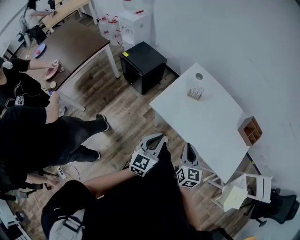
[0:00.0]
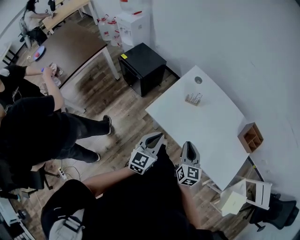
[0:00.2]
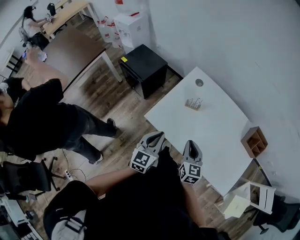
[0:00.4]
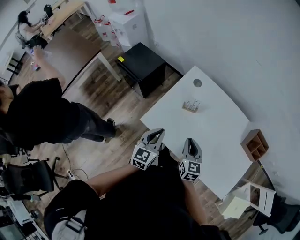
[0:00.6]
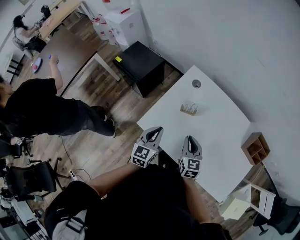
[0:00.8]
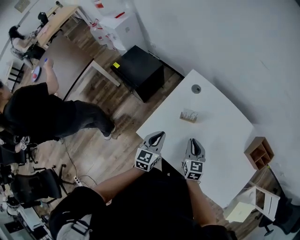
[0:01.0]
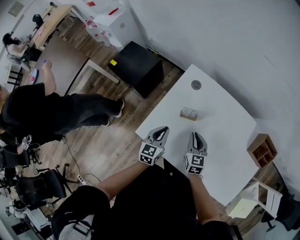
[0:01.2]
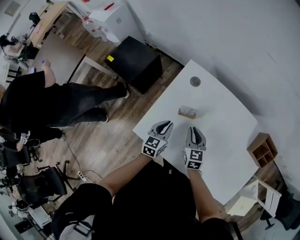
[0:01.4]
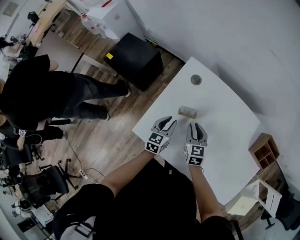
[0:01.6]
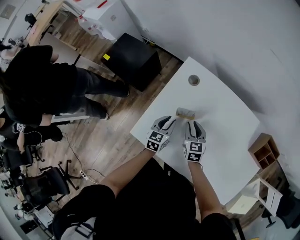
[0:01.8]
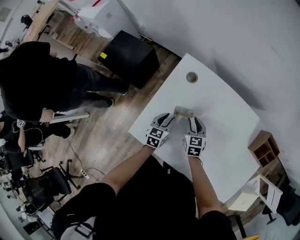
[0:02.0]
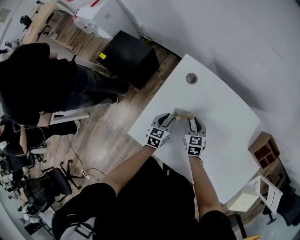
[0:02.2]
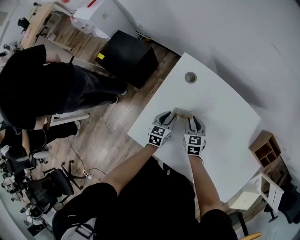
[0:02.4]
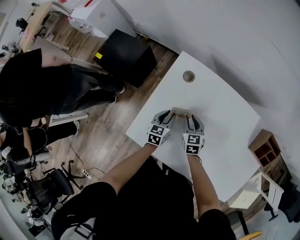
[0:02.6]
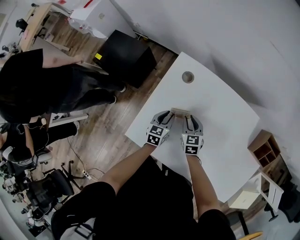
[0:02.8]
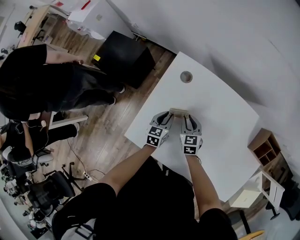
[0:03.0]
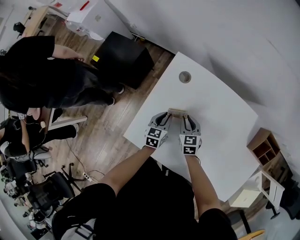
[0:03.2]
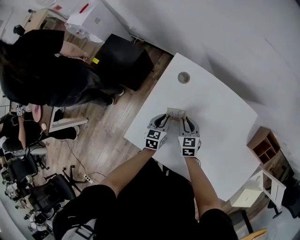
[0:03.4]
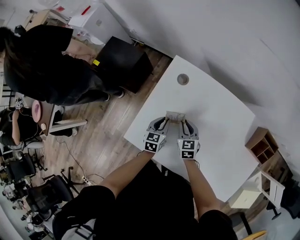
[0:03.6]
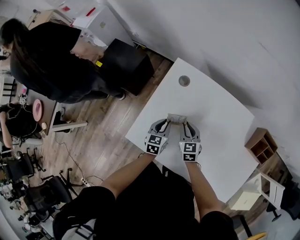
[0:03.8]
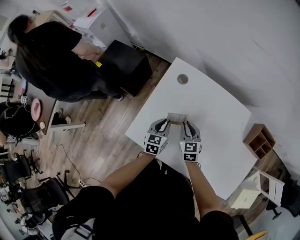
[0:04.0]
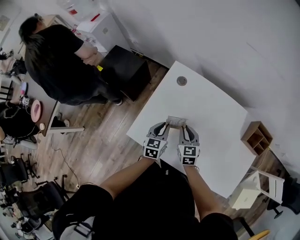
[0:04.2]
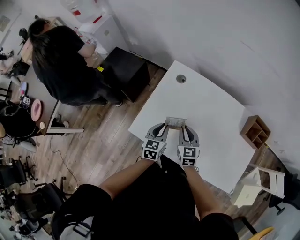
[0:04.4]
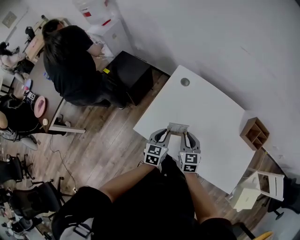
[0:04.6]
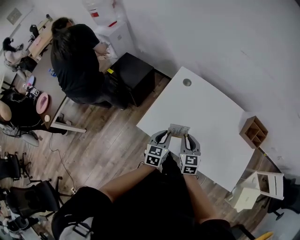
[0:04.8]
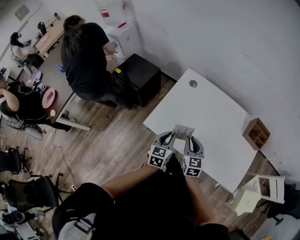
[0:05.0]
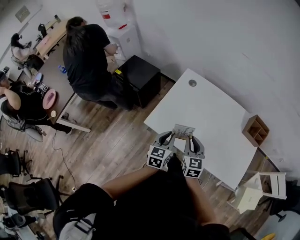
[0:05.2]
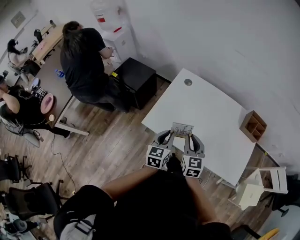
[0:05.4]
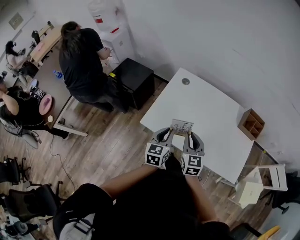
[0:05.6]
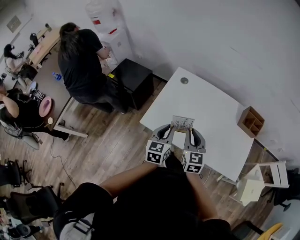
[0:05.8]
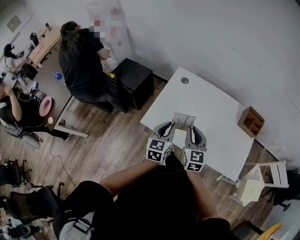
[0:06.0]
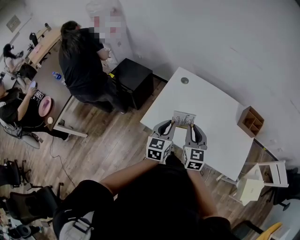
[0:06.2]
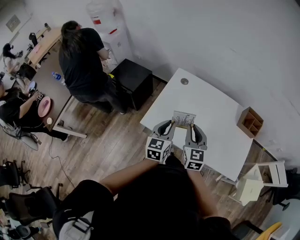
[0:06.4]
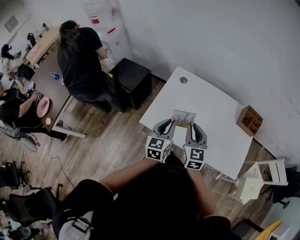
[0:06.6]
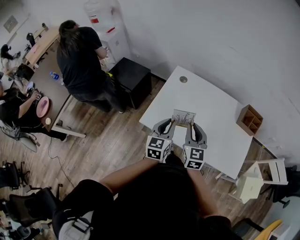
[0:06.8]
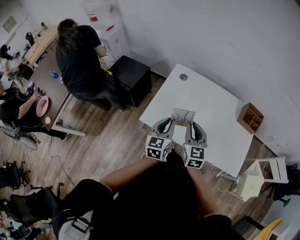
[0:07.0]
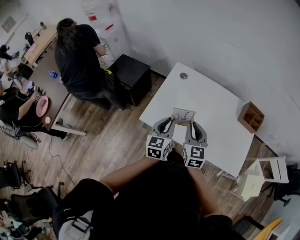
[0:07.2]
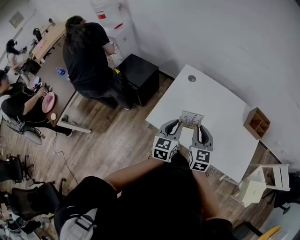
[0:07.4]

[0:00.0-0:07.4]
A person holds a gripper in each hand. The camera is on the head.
0:00.0 to 0:01.4: Both grippers travel together forward and downward, approximately 35 cm. The left gripper swivels approximately 20 degrees.
0:01.4 to 0:03.0: Both grippers move downward and forward, some 10 cm.
0:03.0 to 0:04.4: The grippers both shift upward and backward by approximately 15 cm.
0:04.4 to 0:06.0: Both grippers move upward and backward, about 20 cm.
0:06.0 to 0:07.4: There are only small adjustments of the grippers.

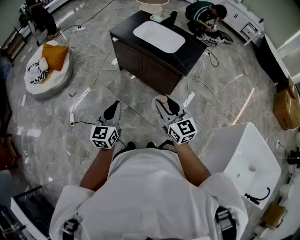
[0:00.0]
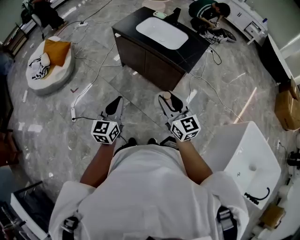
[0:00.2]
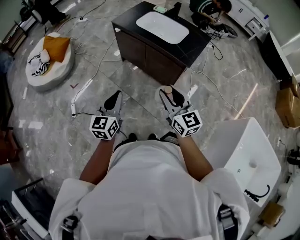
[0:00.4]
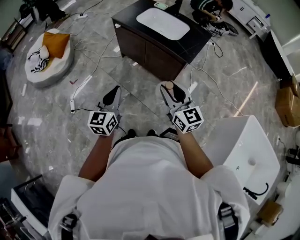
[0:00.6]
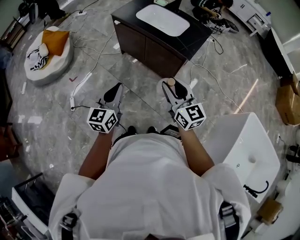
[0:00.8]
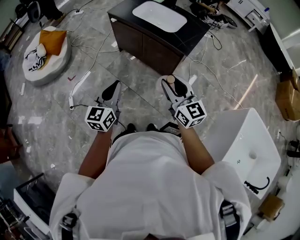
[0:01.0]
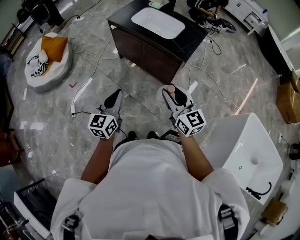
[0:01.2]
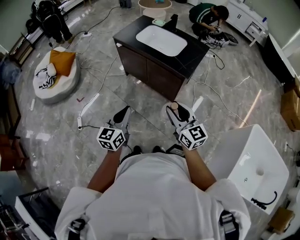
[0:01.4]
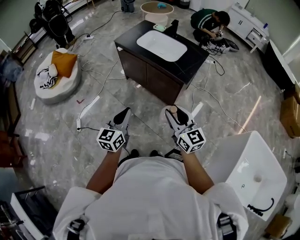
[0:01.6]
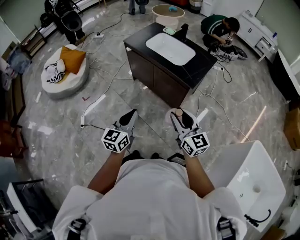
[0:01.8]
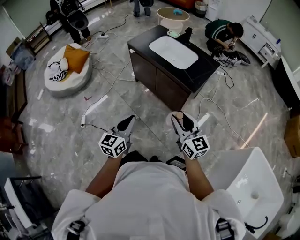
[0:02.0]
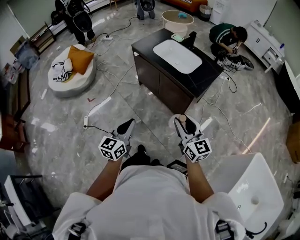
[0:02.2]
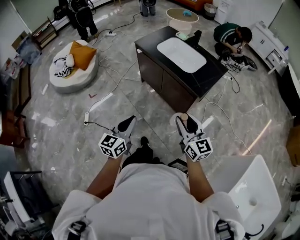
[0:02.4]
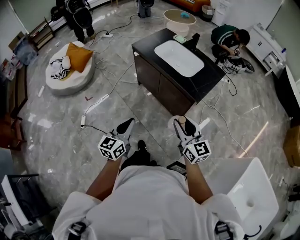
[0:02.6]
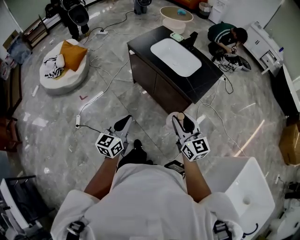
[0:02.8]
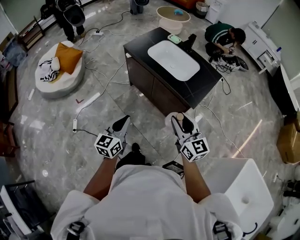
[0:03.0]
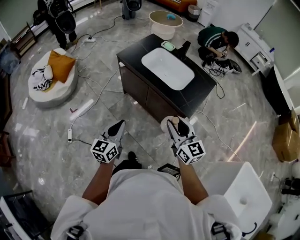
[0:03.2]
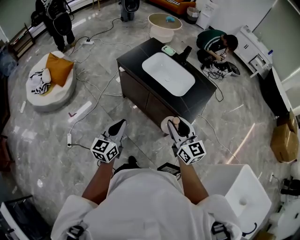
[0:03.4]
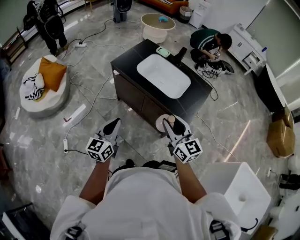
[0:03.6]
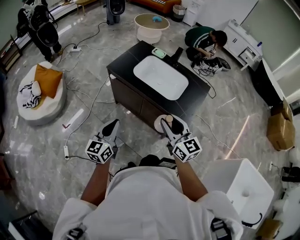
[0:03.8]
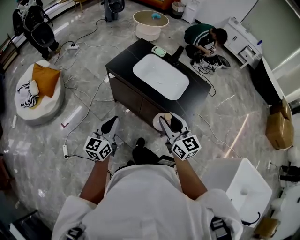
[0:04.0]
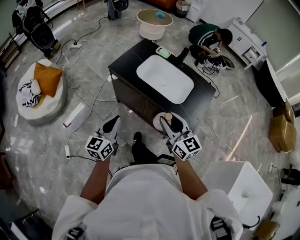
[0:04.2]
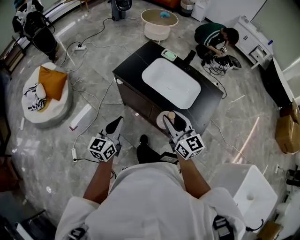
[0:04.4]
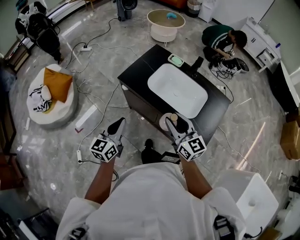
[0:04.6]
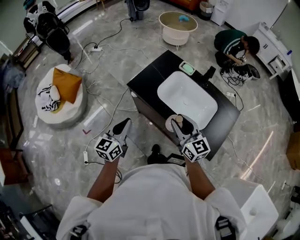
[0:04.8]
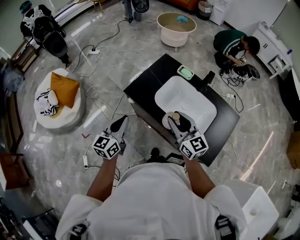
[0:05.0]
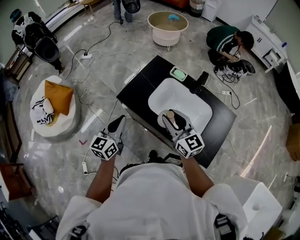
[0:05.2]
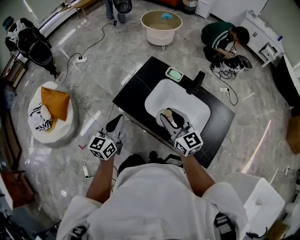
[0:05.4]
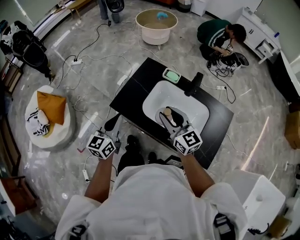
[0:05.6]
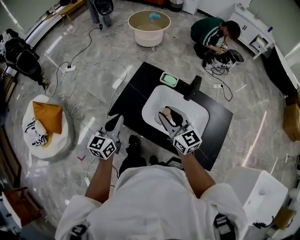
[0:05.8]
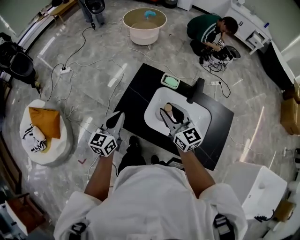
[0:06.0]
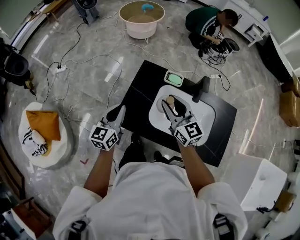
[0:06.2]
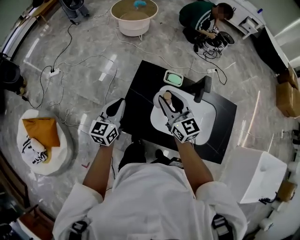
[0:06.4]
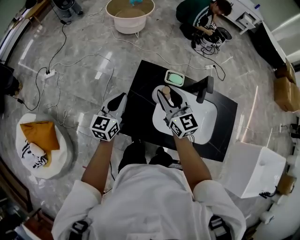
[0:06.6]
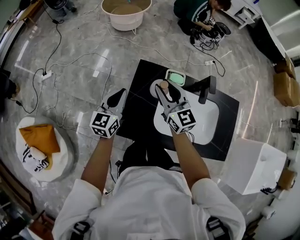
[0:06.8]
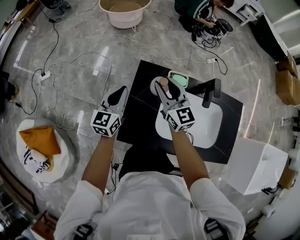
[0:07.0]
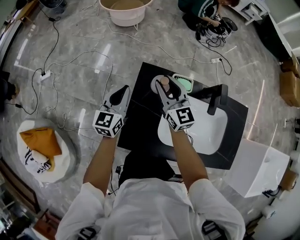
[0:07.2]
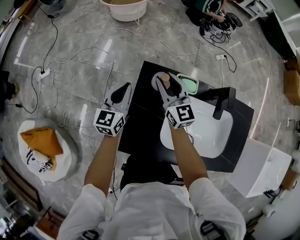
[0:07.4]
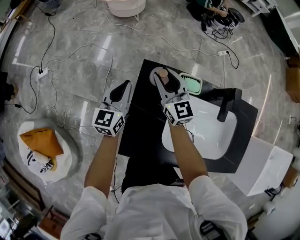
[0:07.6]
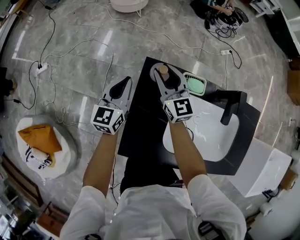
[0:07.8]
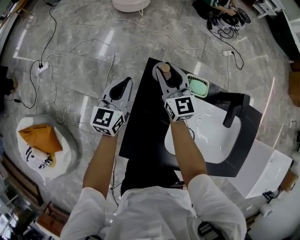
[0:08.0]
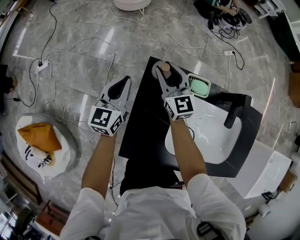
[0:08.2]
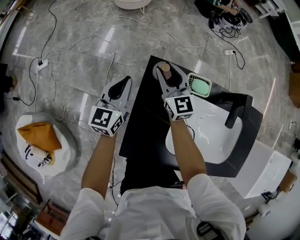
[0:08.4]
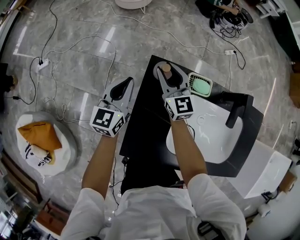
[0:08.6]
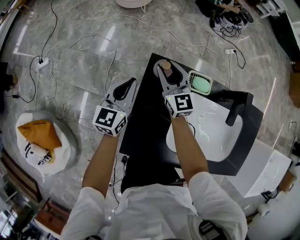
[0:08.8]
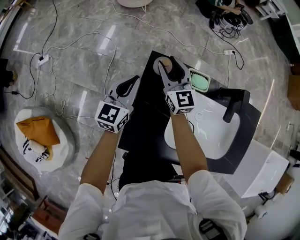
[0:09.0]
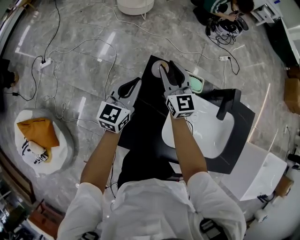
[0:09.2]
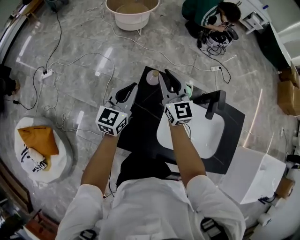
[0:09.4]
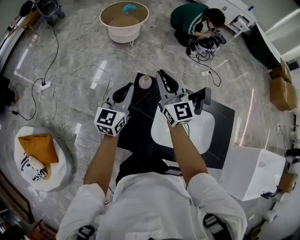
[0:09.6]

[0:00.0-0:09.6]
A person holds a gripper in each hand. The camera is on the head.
0:00.0 to 0:01.6: The two grippers go roughly 5 cm to the right.
0:01.6 to 0:03.2: The two grippers go approximately 20 cm forward.
0:03.2 to 0:04.8: The grippers both shift forward by approximately 35 cm.
0:04.8 to 0:06.4: Both grippers travel together forward, roughly 40 cm. The right gripper turns by roughly 20 degrees.
0:06.4 to 0:08.0: Both grippers move forward and downward, about 30 cm.
0:08.0 to 0:09.6: Both grippers move upward and backward, approximately 25 cm. The right gripper closes.

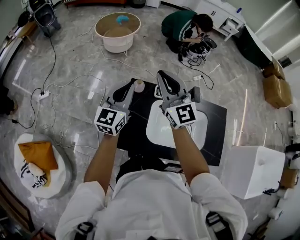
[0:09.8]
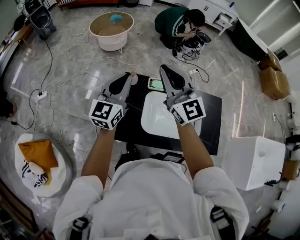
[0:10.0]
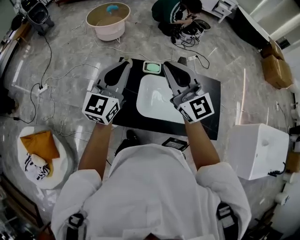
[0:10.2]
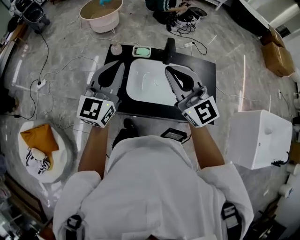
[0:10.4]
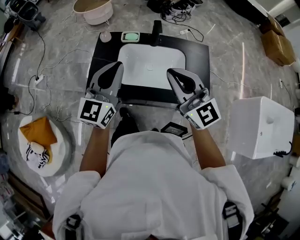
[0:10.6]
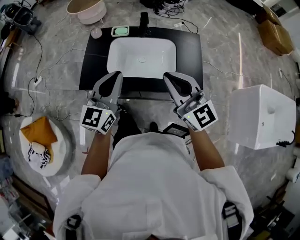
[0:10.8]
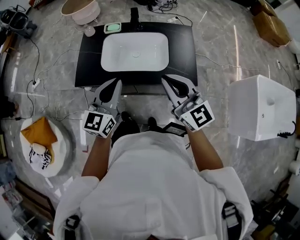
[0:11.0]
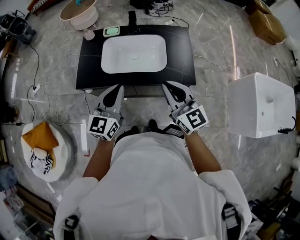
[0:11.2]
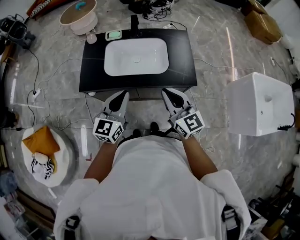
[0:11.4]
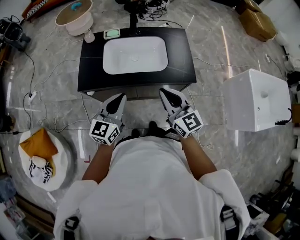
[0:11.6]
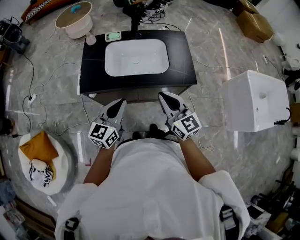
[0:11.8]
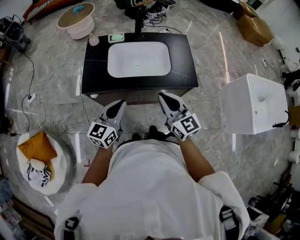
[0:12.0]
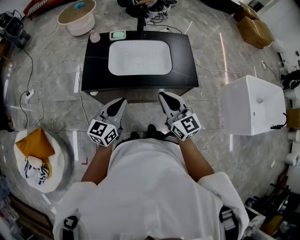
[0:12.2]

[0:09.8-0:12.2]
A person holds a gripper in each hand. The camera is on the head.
0:09.8 to 0:11.0: Both grippers are carried backward and to the right, about 50 cm.
0:11.0 to 0:12.2: The left gripper travels backward, to the left and downward by roughly 10 cm. The right gripper heads to the left, backward and downward, covering about 10 cm.

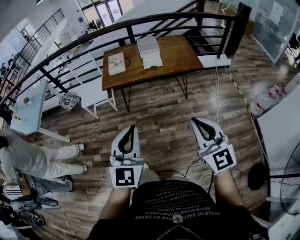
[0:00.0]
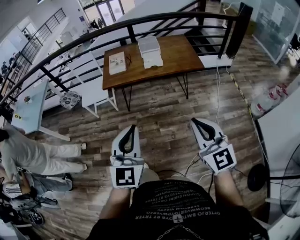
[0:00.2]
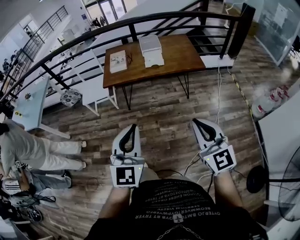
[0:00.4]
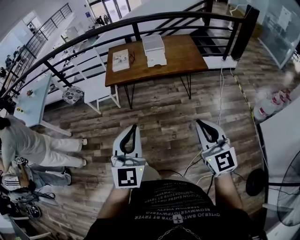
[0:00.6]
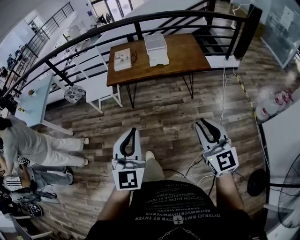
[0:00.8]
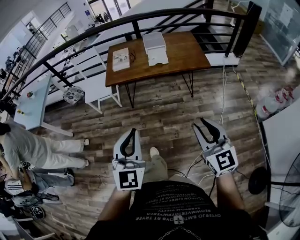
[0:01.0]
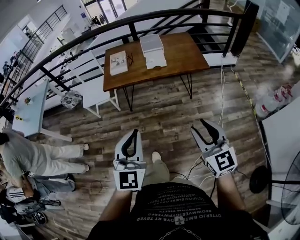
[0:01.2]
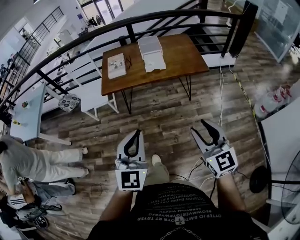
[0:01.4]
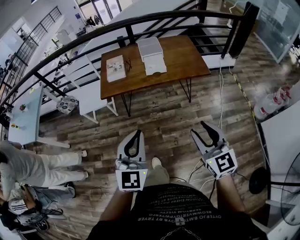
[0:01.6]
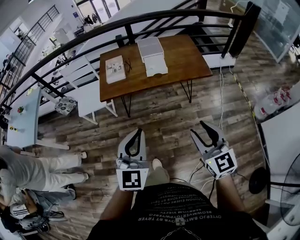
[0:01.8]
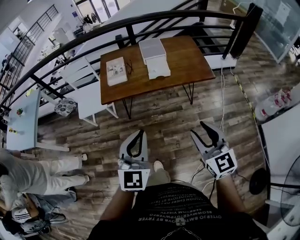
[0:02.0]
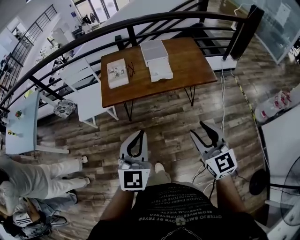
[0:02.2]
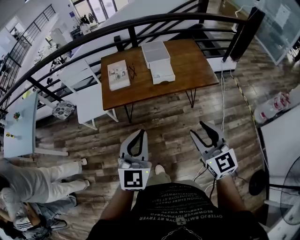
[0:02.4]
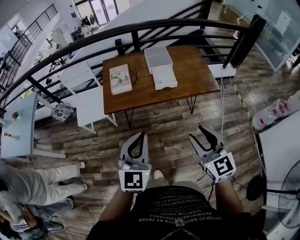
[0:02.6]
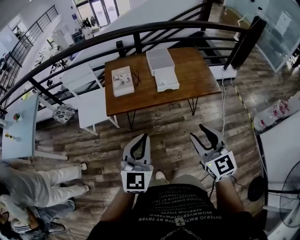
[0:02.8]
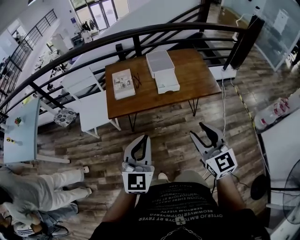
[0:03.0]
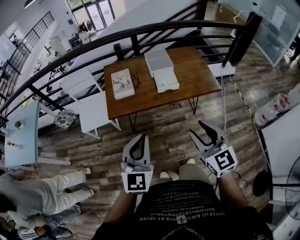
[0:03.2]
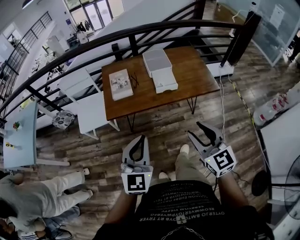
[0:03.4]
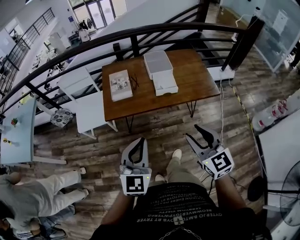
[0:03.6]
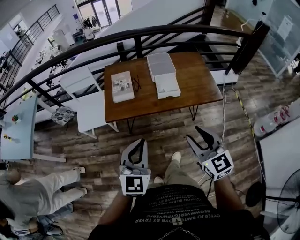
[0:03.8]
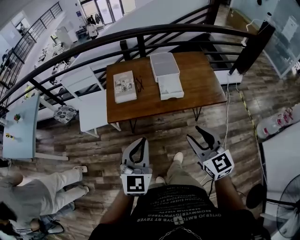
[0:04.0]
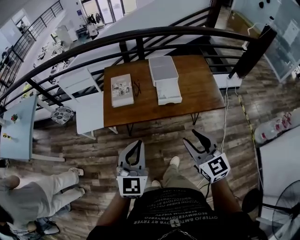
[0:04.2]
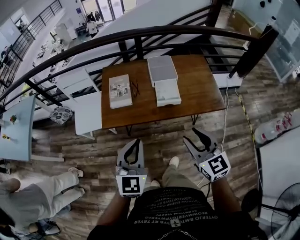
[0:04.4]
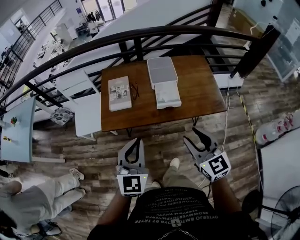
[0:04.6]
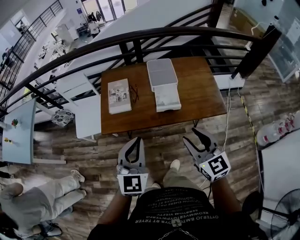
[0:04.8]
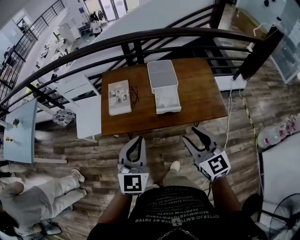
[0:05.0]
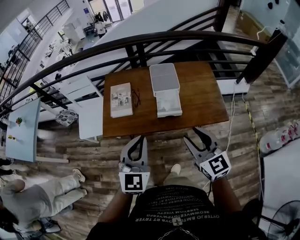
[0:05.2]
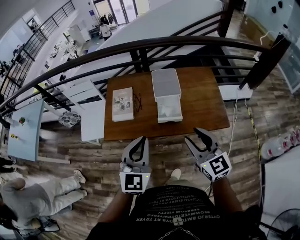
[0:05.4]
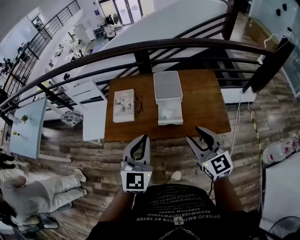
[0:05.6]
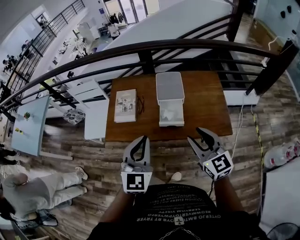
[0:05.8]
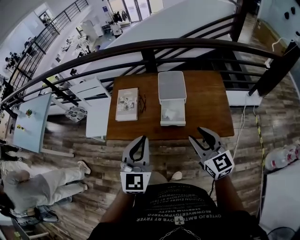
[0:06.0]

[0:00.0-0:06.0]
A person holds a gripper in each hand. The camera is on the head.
0:00.0 to 0:01.6: The left gripper travels forward by some 15 cm. The right gripper shifts some 15 cm forward and downward, and opens up.
0:01.6 to 0:03.0: The grippers both shift forward and to the left by some 20 cm.
0:03.0 to 0:04.4: Both grippers move forward, approximately 15 cm.
0:04.4 to 0:06.0: The right gripper heads forward and to the right, covering some 20 cm, while the left gripper travels to the right and forward by some 15 cm.
